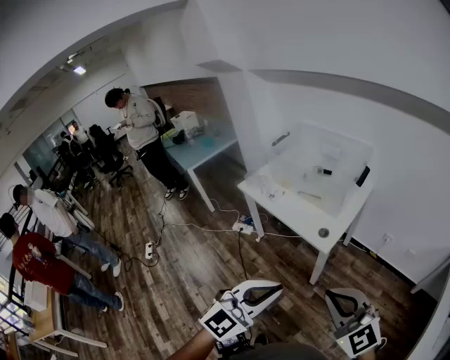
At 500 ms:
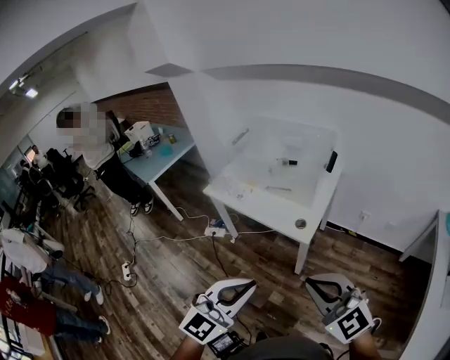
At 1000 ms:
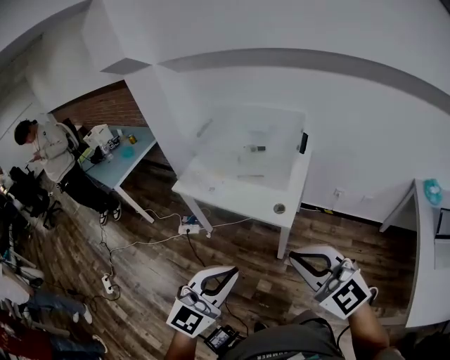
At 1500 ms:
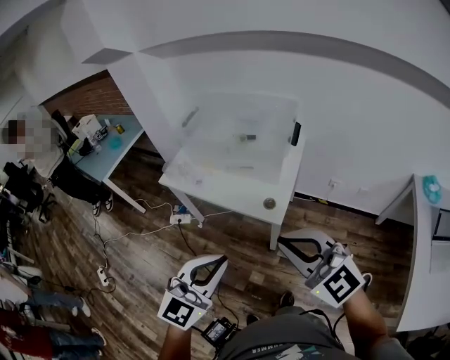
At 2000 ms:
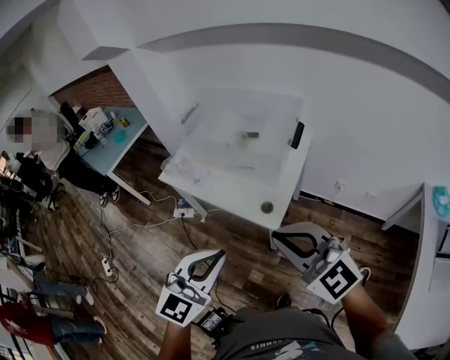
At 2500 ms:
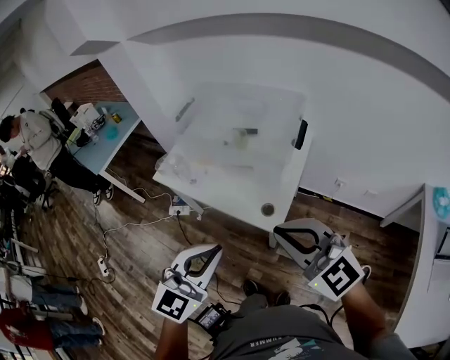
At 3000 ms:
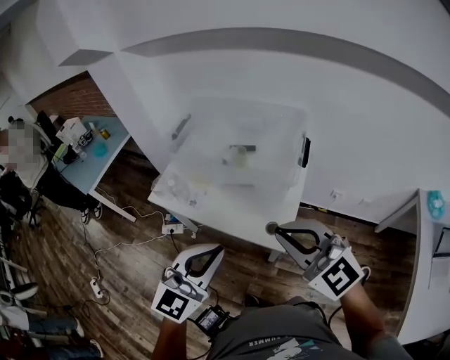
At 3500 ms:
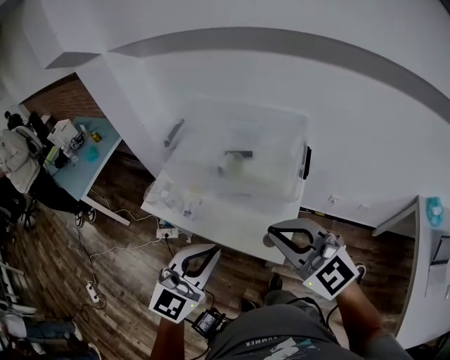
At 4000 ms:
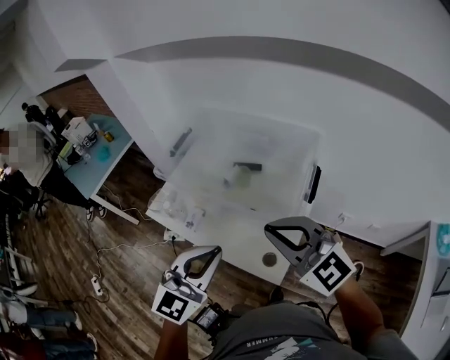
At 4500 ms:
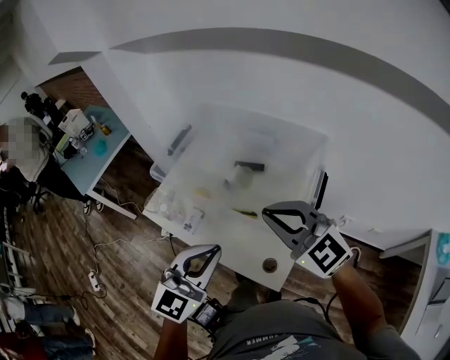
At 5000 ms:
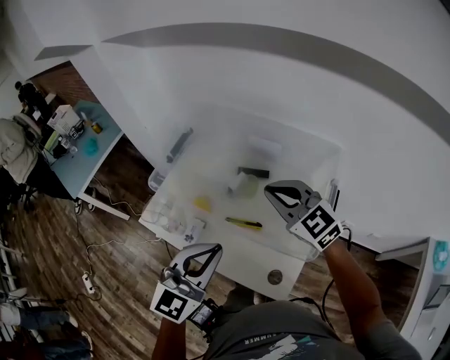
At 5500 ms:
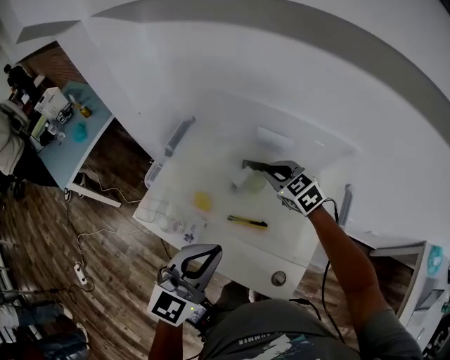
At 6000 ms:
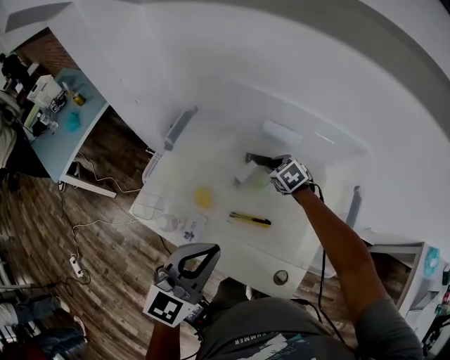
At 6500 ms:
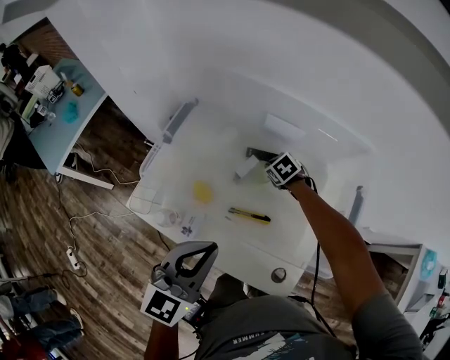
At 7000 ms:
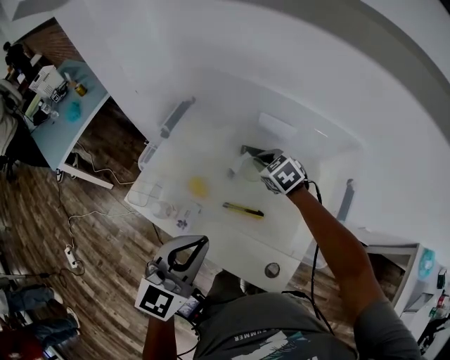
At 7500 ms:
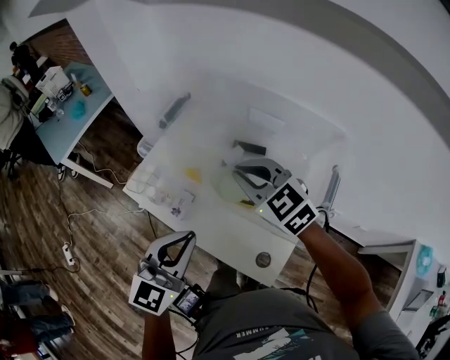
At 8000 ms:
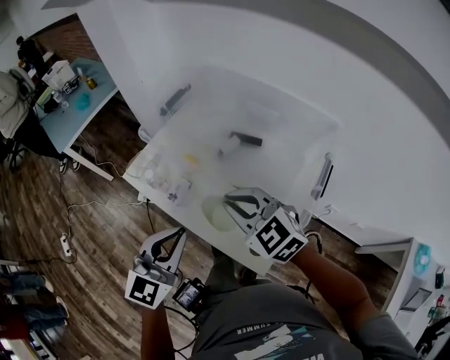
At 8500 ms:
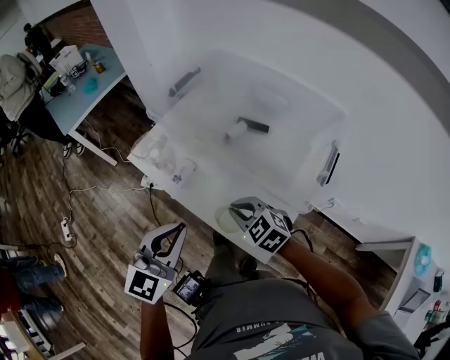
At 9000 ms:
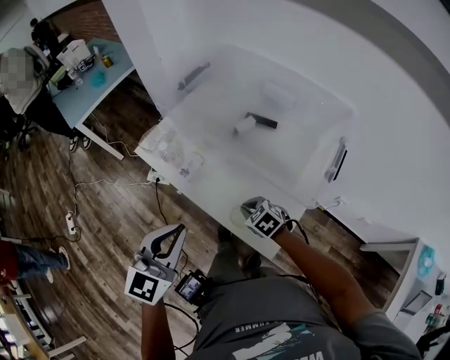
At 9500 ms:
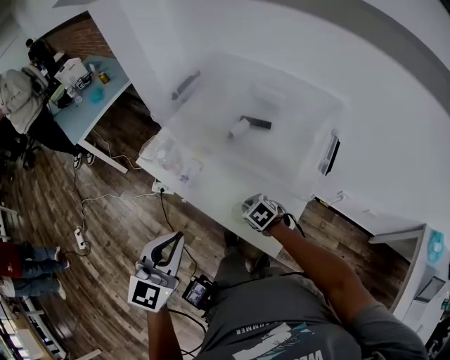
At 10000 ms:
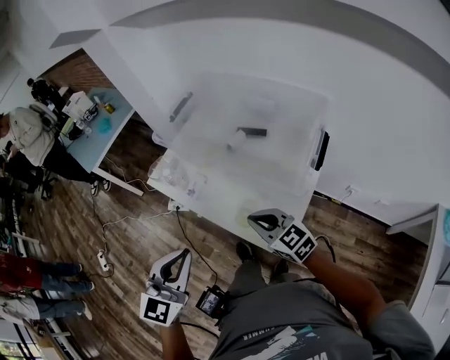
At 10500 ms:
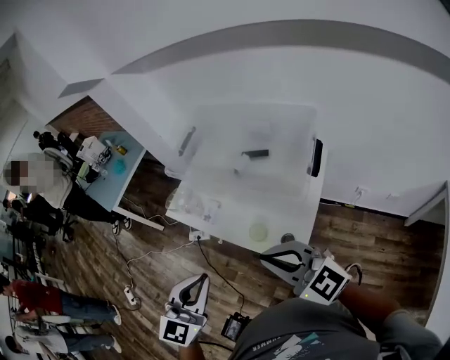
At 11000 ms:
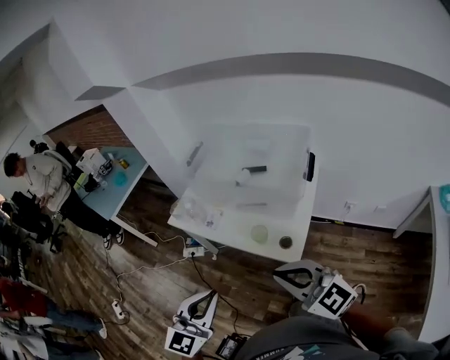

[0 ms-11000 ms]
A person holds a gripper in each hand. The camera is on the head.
0 ms to 2000 ms: Both grippers travel together forward, approximately 20 cm.
2000 ms to 3500 ms: Both grippers move forward, some 20 cm.
3500 ms to 5500 ms: The left gripper heads forward, covering some 20 cm. Meanwhile the right gripper is displaced forward and downward by about 50 cm, and turns by roughly 30 degrees.
5500 ms to 7500 ms: The left gripper changes place by approximately 5 cm. The right gripper moves backward, upward and to the left, roughly 20 cm.
7500 ms to 9000 ms: The left gripper shifts roughly 10 cm backward and to the left, while the right gripper moves downward and backward, approximately 35 cm, and swivels roughly 30 degrees.
9000 ms to 11000 ms: The right gripper travels upward and backward by roughly 40 cm, and angles its fingers upward, by roughly 50 degrees, while the left gripper shifts about 20 cm backward and upward.

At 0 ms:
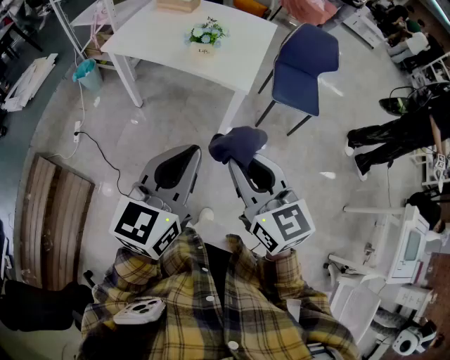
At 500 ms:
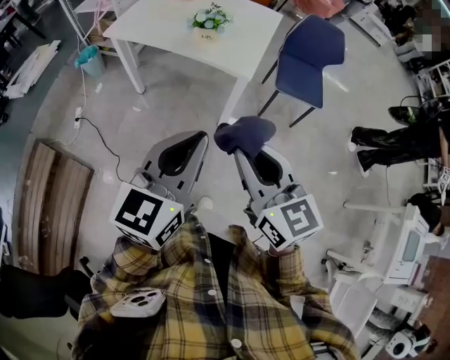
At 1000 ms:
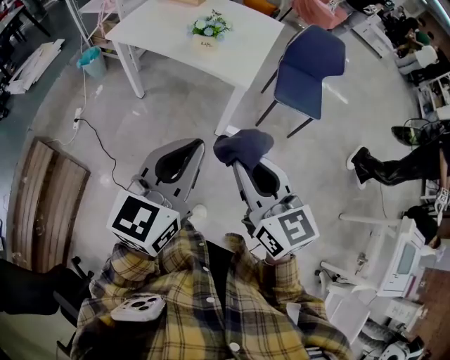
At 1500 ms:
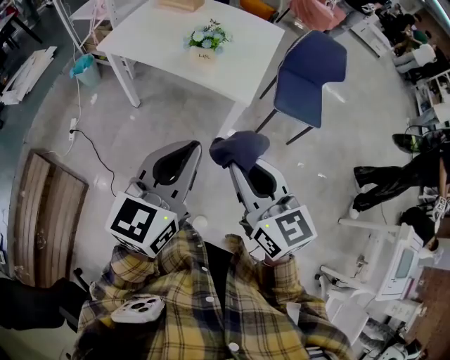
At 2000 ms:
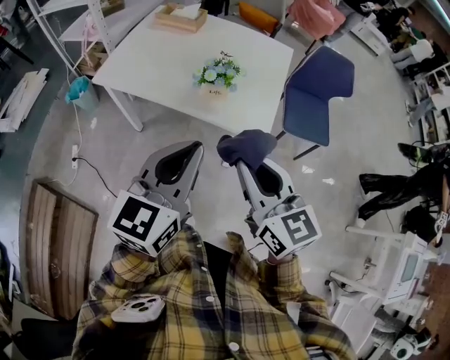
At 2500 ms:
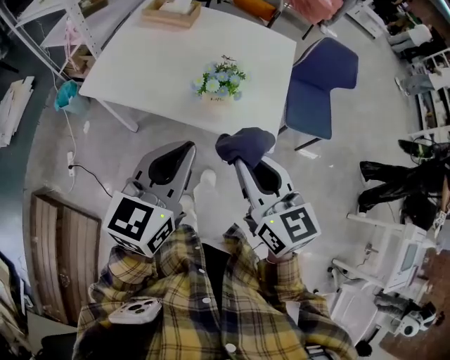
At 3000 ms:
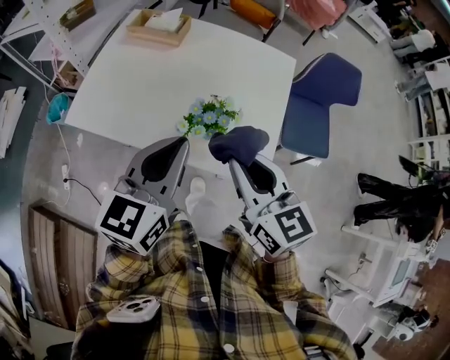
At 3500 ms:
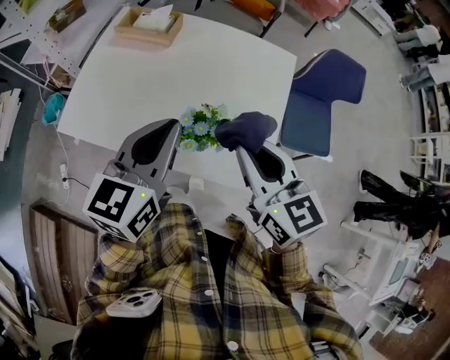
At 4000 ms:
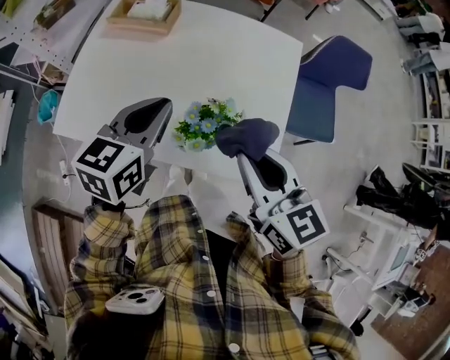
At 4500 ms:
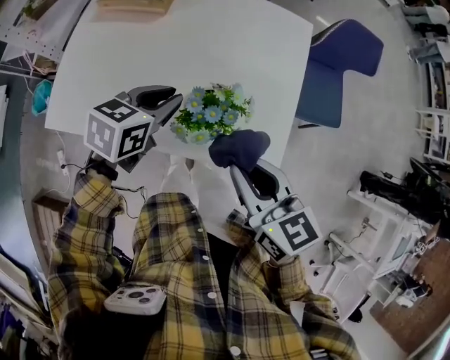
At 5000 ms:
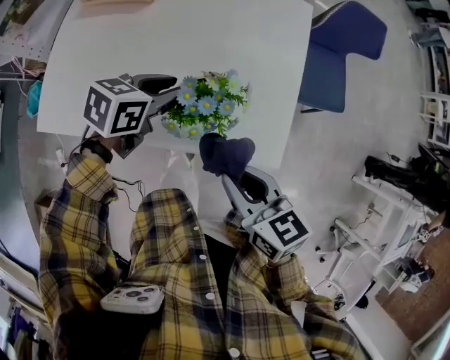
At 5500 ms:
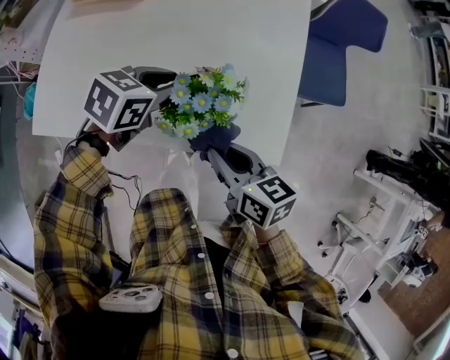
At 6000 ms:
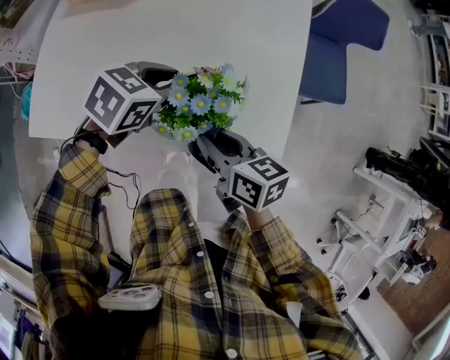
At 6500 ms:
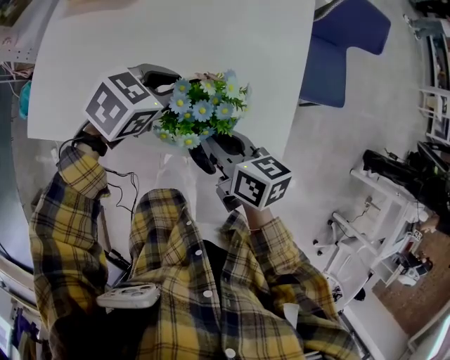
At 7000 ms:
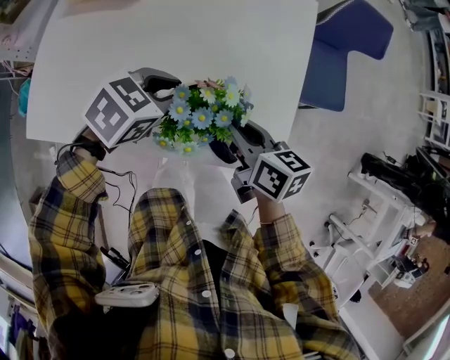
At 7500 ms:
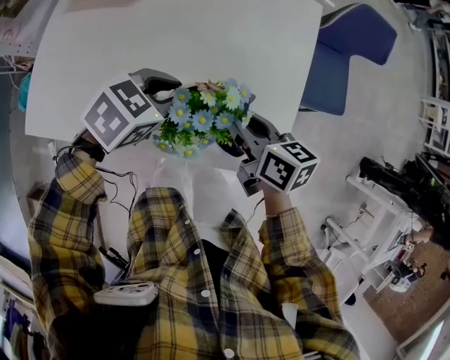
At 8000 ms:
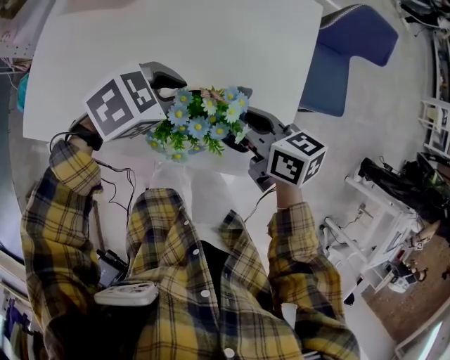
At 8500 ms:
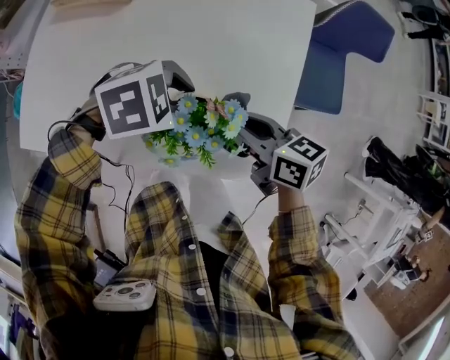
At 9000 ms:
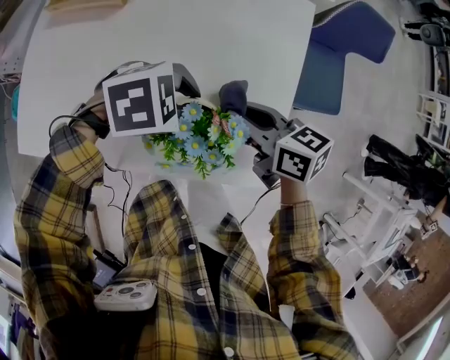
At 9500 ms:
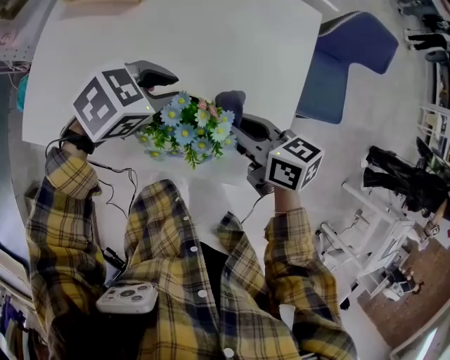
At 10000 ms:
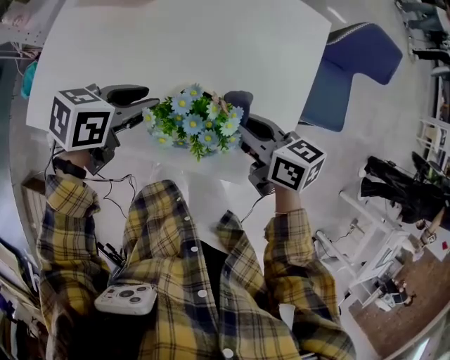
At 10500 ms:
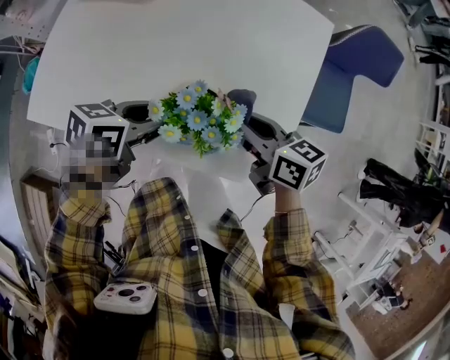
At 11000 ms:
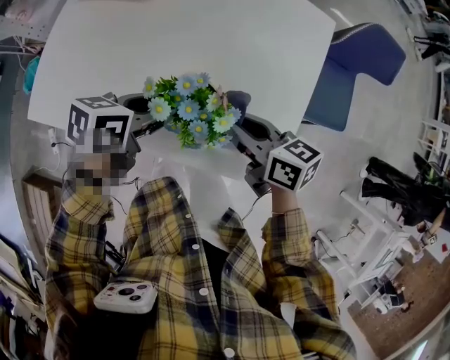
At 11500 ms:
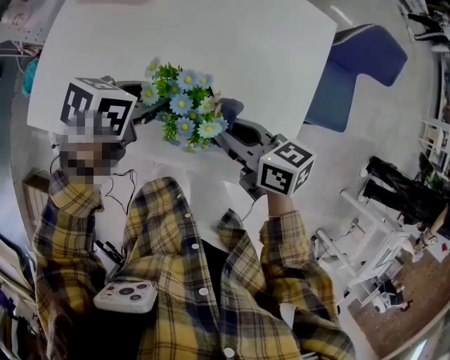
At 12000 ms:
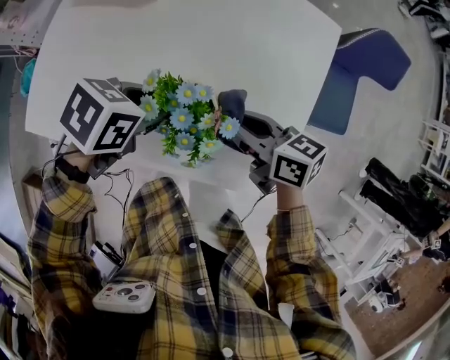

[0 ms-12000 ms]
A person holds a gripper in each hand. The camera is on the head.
0 ms to 2000 ms: Both grippers move forward, some 25 cm.
2000 ms to 4000 ms: The grippers both shift forward by roughly 30 cm. The left gripper swivels about 20 degrees.
4000 ms to 6000 ms: The grippers both shift downward by roughly 20 cm. The left gripper swivels roughly 40 degrees, and opens its fingers. Meanwhile the right gripper changes its angle by some 30 degrees.
6000 ms to 8000 ms: The right gripper changes place by some 10 cm.
8000 ms to 10000 ms: The left gripper moves about 5 cm, and rotates some 40 degrees.
10000 ms to 12000 ms: The grippers move only a little.

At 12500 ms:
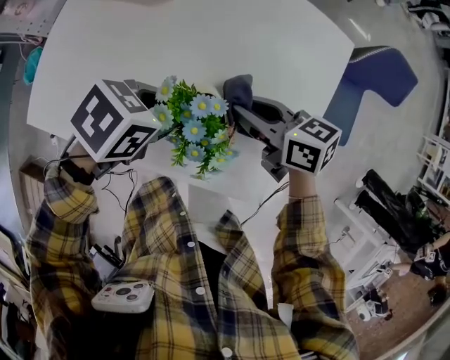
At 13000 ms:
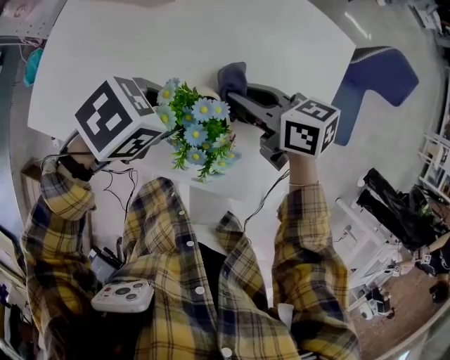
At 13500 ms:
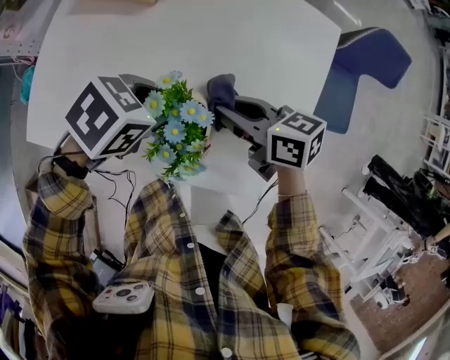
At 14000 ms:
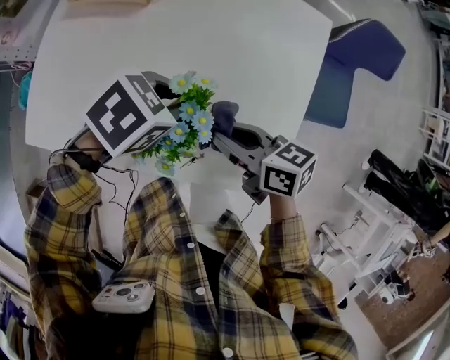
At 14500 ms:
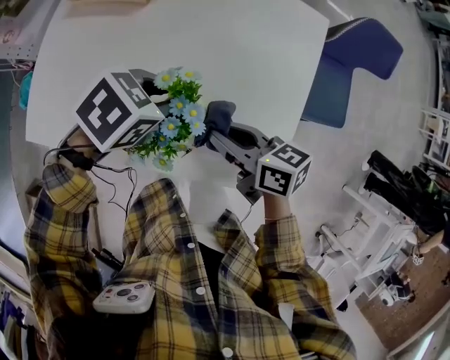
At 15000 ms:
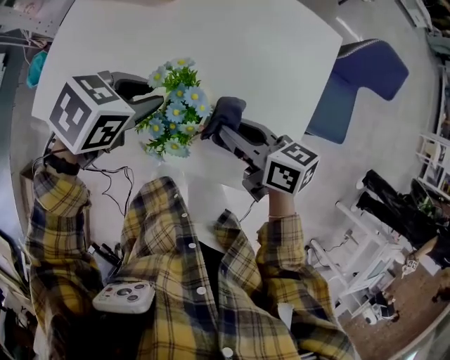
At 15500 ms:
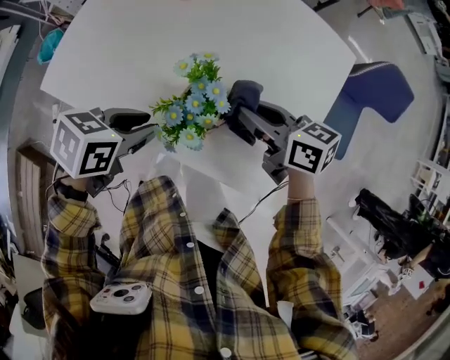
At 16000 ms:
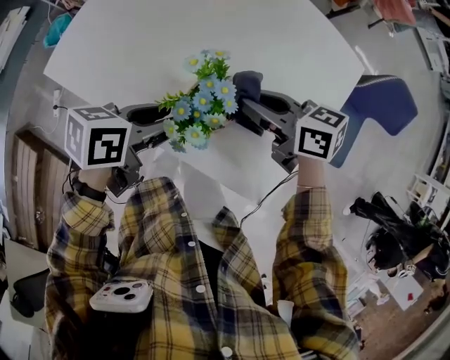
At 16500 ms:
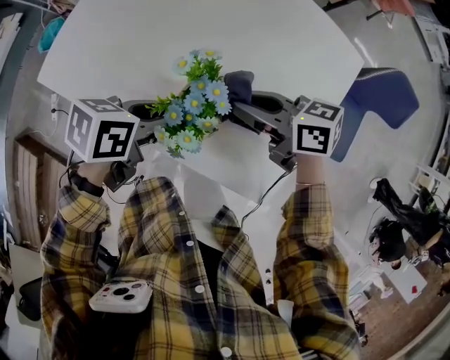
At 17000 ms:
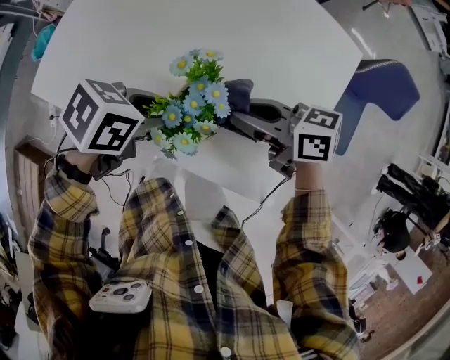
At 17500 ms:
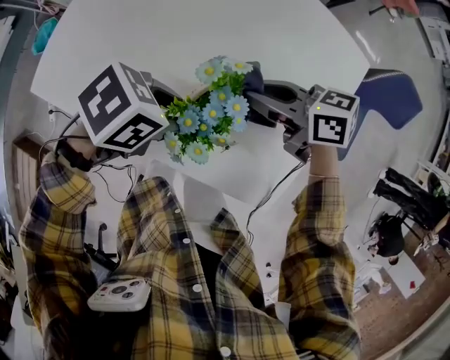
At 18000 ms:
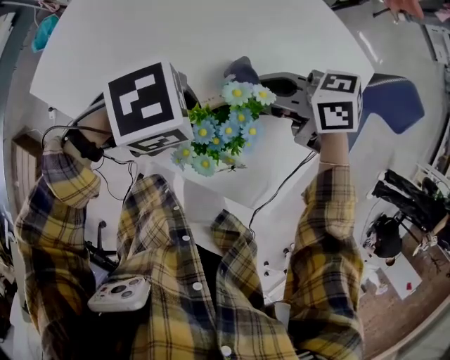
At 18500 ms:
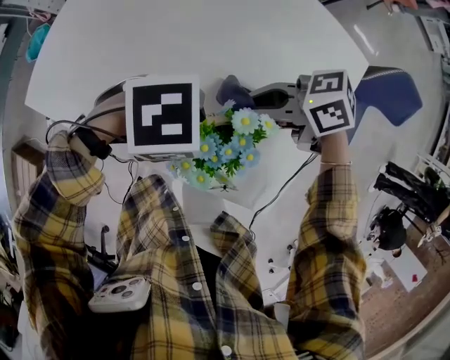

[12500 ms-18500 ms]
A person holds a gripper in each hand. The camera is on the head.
12500 ms to 14500 ms: The right gripper moves approximately 5 cm.
14500 ms to 16500 ms: The right gripper changes its angle by roughly 30 degrees, while the left gripper shifts by some 10 cm, and rolls counterclockwise, seen from behind, by some 40 degrees.
16500 ms to 18500 ms: The left gripper ends up approximately 5 cm from where it was, and rotates some 70 degrees; the right gripper changes its angle by some 30 degrees.
